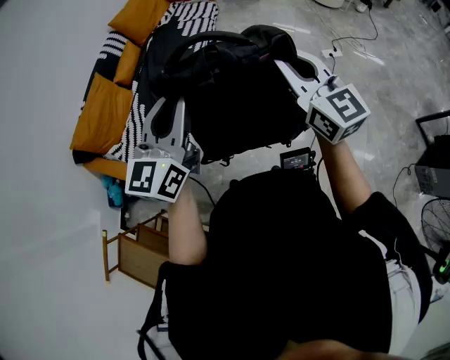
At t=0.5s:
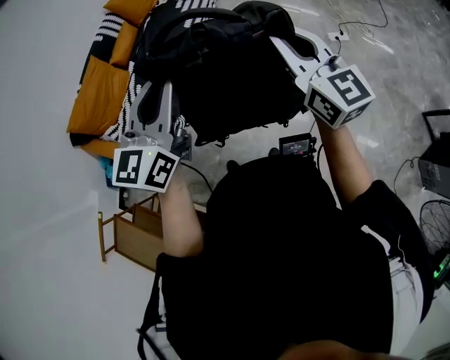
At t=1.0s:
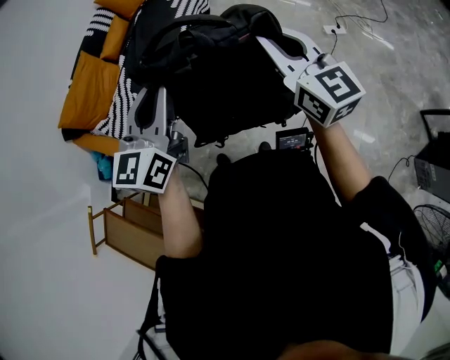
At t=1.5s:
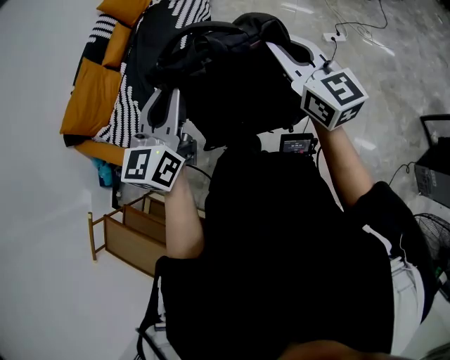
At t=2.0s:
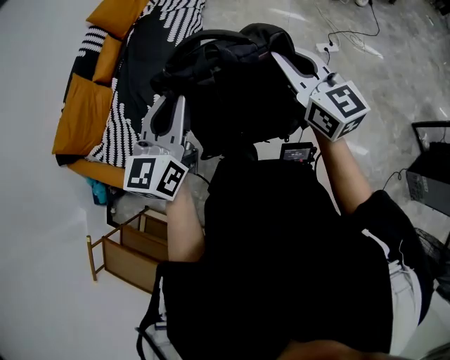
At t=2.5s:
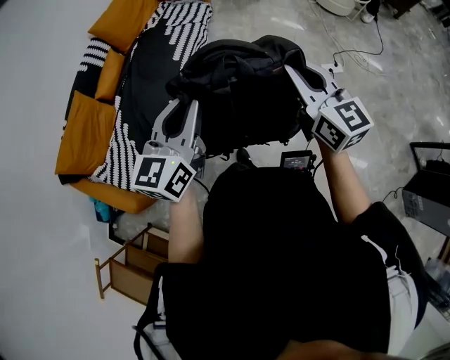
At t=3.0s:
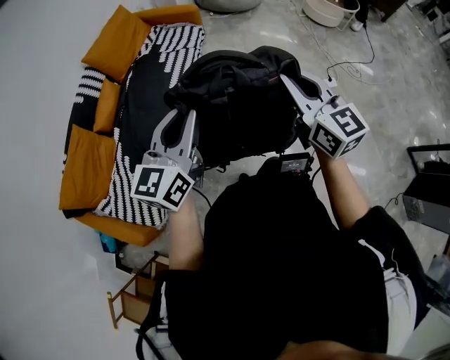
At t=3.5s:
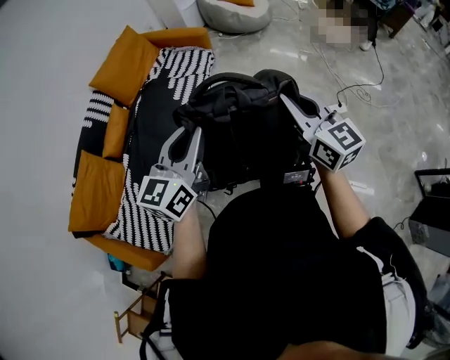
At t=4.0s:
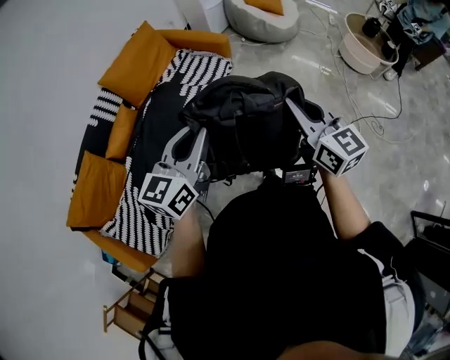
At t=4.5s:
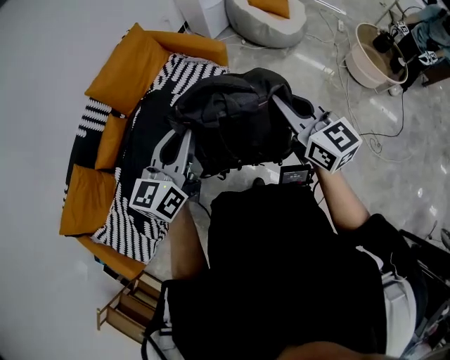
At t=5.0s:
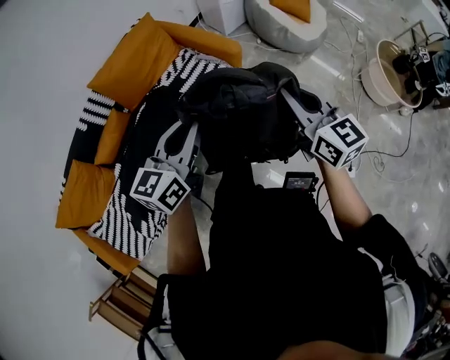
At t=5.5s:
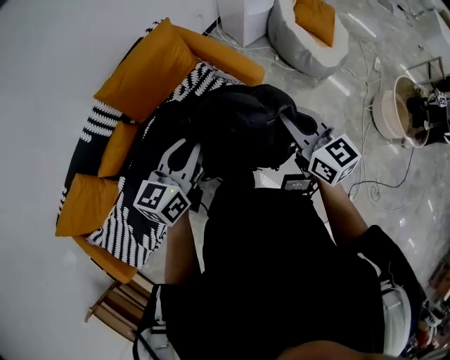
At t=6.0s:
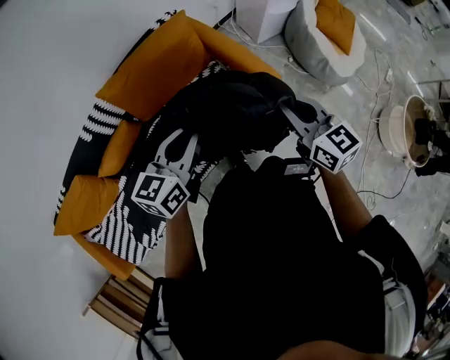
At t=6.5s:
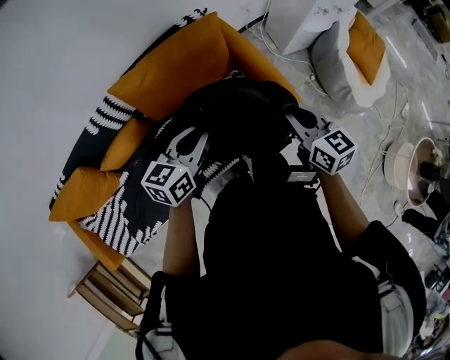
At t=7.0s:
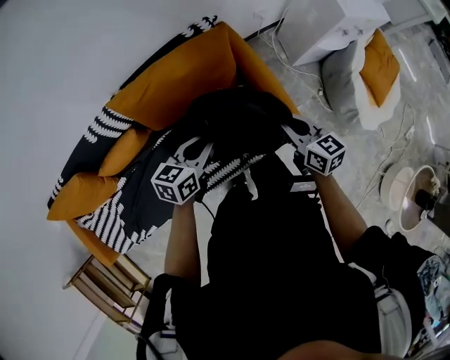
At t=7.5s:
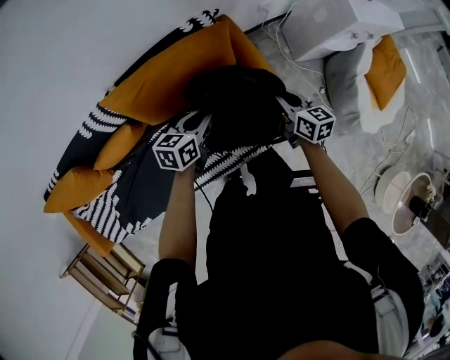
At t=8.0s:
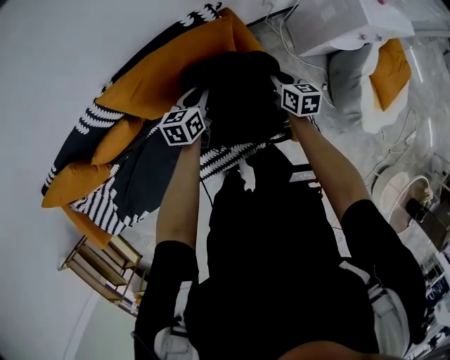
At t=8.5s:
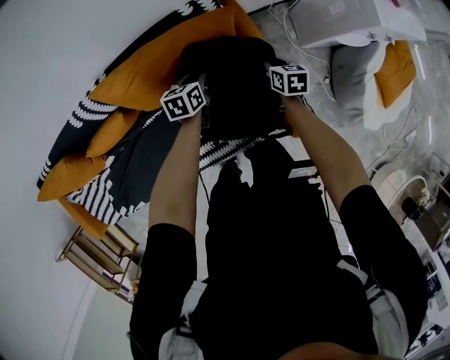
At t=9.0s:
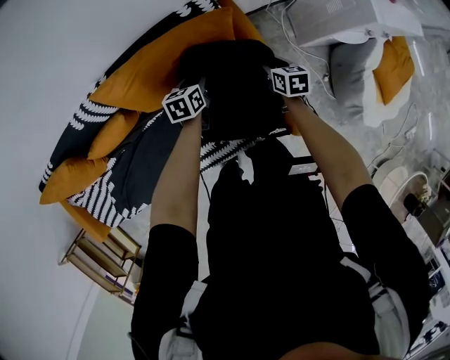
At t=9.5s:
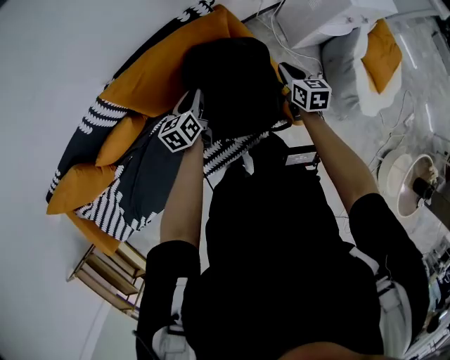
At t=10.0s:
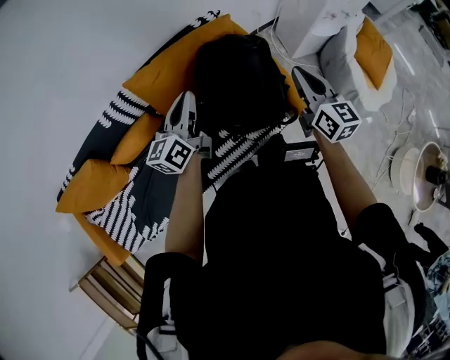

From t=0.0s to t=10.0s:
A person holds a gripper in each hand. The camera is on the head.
From t=0.0s to t=2.0s: The right gripper shifts roughly 15 cm to the right and forward, while the left gripper moves to the right, forward and downward, roughly 15 cm.
From t=2.0s to t=4.0s: The pair of grippers is taken forward, roughly 50 cm.
From t=4.0s to t=6.0s: Both grippers are carried forward, approximately 50 cm. The left gripper turns by approximately 20 degrees, while the right gripper rotates approximately 30 degrees.
From t=6.0s to t=8.0s: The grippers both shift forward and downward by some 40 cm. The left gripper turns by approximately 30 degrees; the right gripper swivels some 30 degrees.
From t=8.0s to t=10.0s: Both grippers move upward and backward, some 30 cm. The left gripper points its fingers about 30 degrees further upward, while the right gripper rotates roughly 30 degrees, and opens, then closes again.

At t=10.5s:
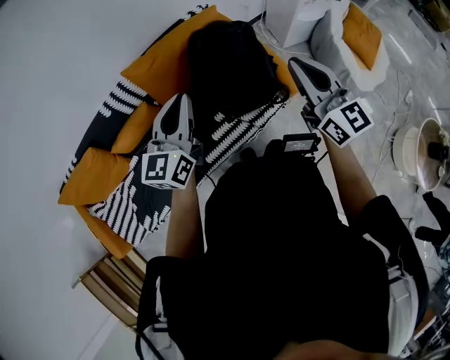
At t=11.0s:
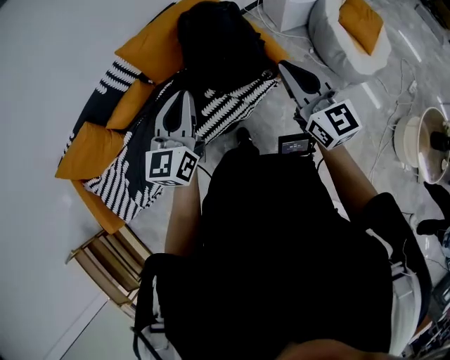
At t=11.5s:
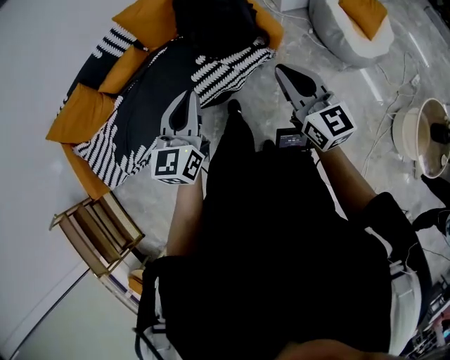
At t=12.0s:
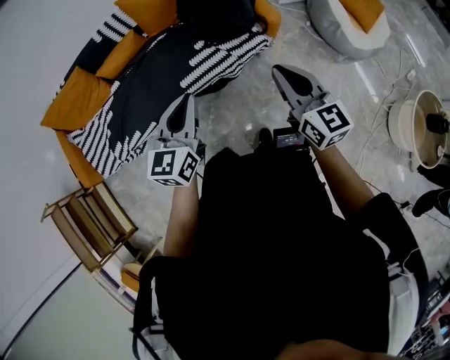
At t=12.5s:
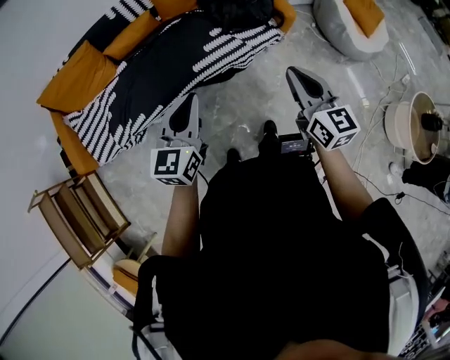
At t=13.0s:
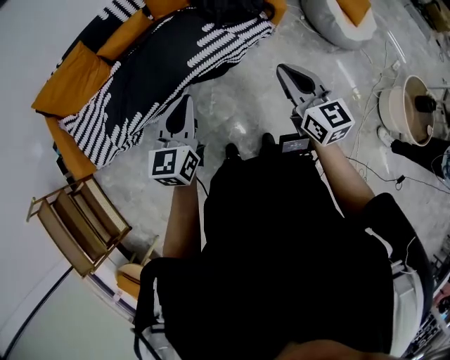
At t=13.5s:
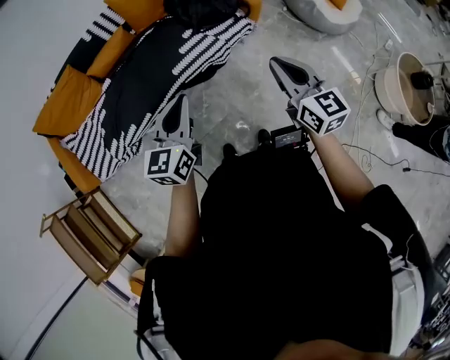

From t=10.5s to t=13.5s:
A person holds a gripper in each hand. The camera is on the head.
From t=10.5s to t=12.0s: The two grippers go about 35 cm backward.
From t=12.0s to t=13.5s: The two grippers go some 15 cm backward and to the left.

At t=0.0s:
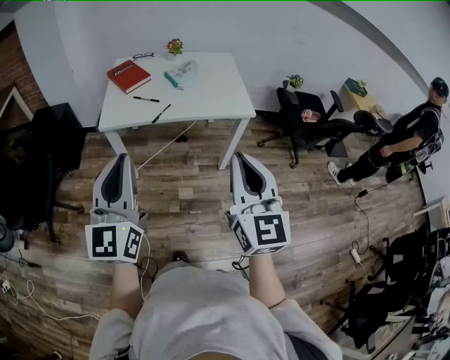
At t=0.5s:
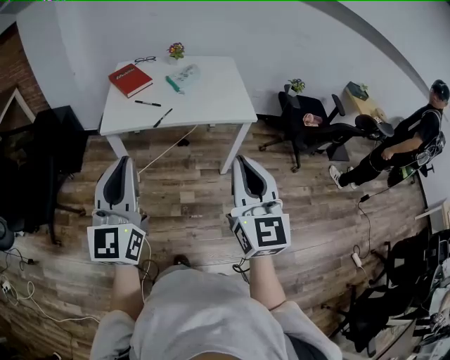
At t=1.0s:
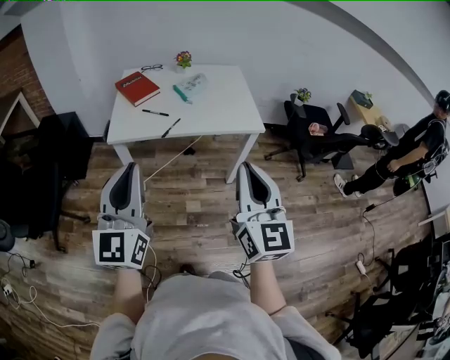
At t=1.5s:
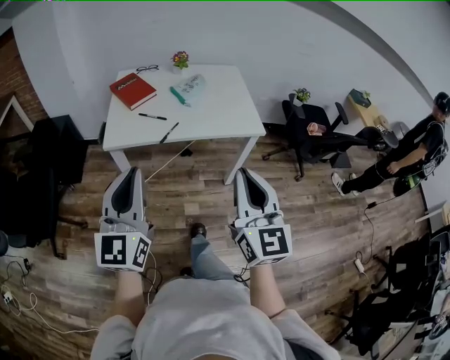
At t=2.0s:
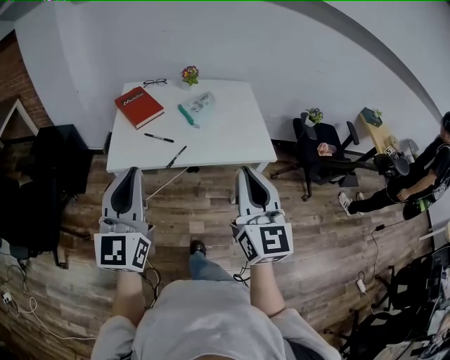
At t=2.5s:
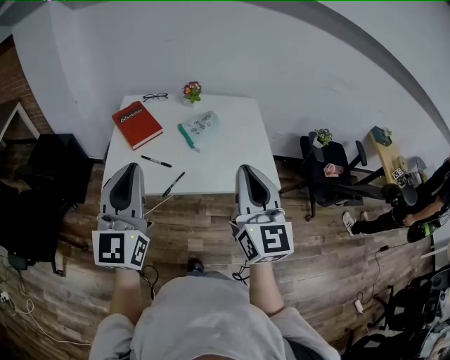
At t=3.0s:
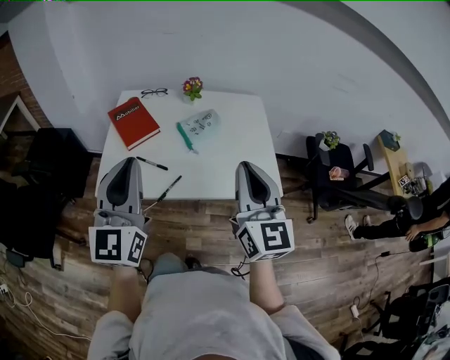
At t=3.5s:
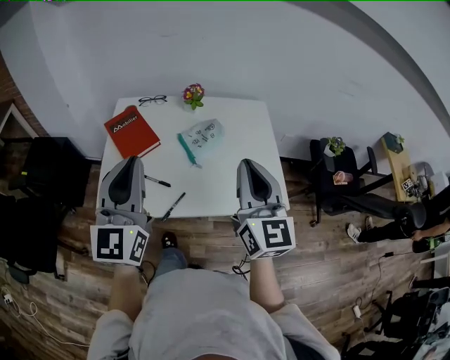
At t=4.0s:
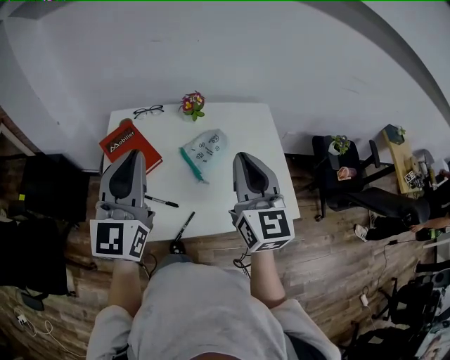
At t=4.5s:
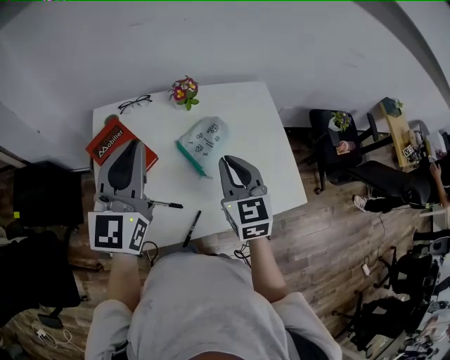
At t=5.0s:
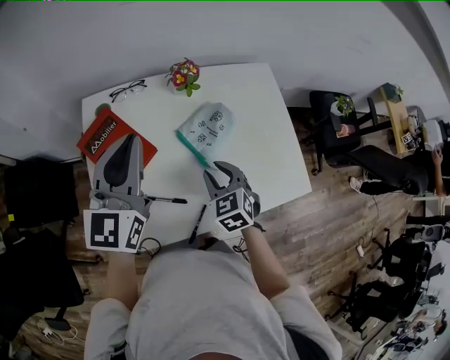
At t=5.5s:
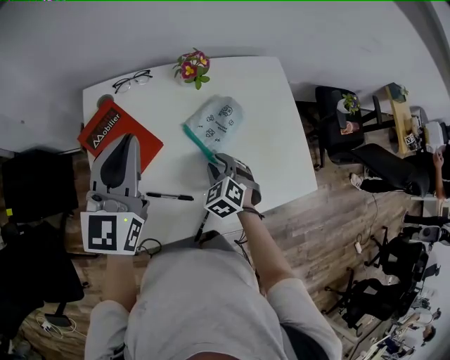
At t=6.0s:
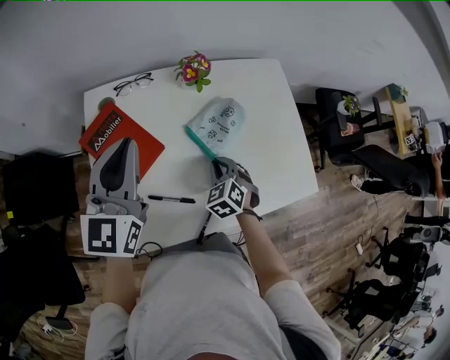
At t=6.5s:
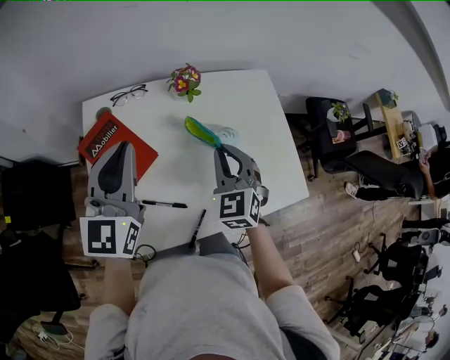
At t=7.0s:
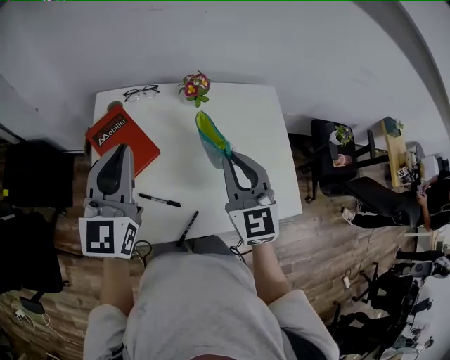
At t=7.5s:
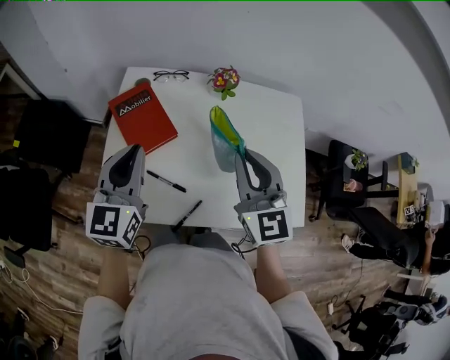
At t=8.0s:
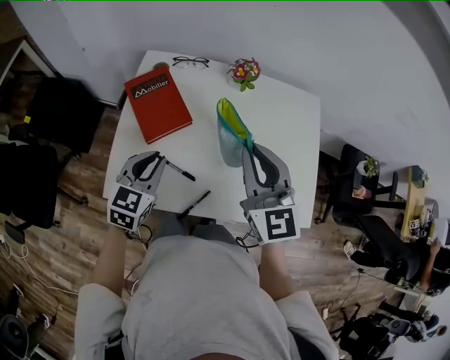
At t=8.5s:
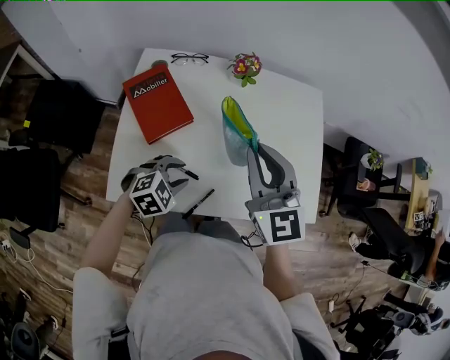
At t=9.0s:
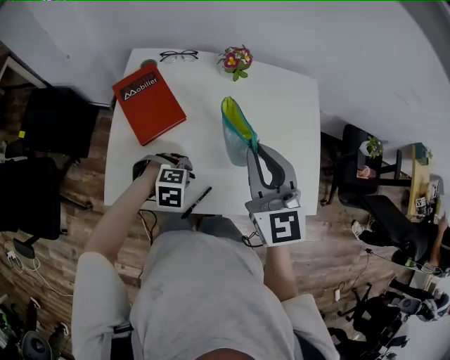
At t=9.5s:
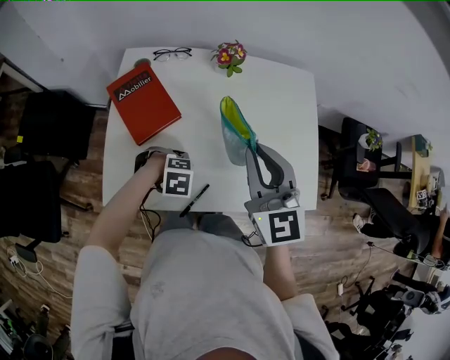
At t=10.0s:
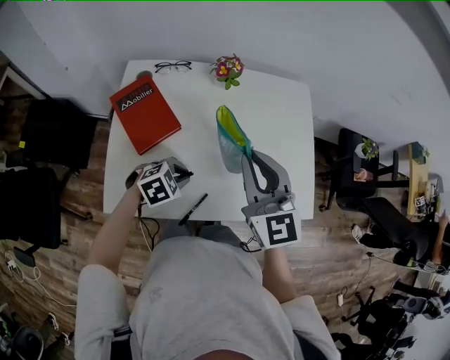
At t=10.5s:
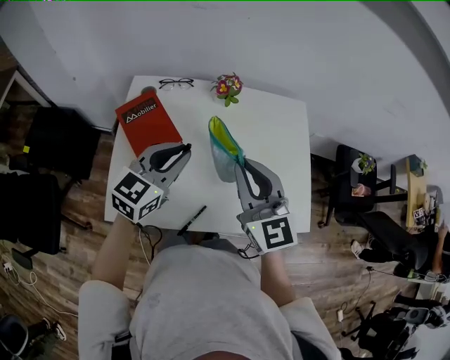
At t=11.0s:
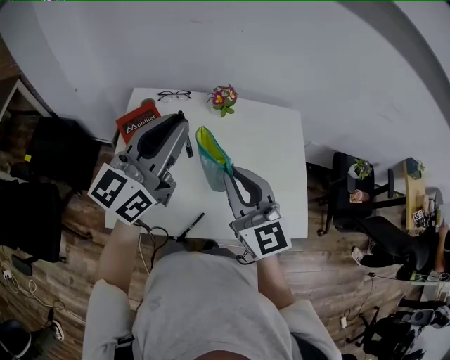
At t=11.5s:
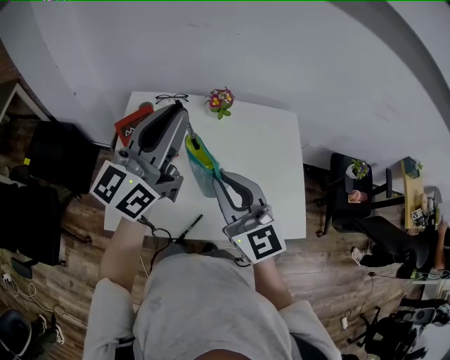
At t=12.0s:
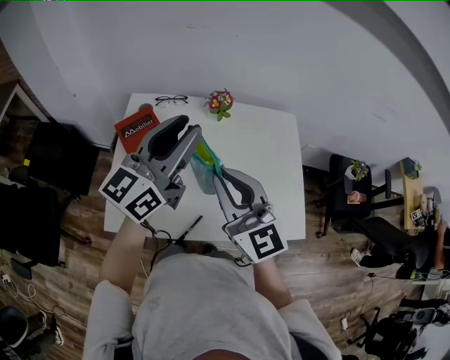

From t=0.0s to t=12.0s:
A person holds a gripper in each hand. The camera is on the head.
From t=0.0s to t=2.0s: Both grippers travel together forward, some 20 cm.
From t=2.0s to t=4.0s: Both grippers travel together forward, roughly 40 cm.
From t=4.0s to t=6.0s: The right gripper travels downward by about 35 cm, and tilts its fingers approximately 50 degrees downward. Meanwhile the left gripper travels forward, downward and to the left by some 20 cm.
From t=6.0s to t=8.0s: The right gripper goes roughly 25 cm upward, and tilts its fingers some 40 degrees upward, while the left gripper goes some 20 cm downward and backward, and swivels some 30 degrees.
From t=8.0s to t=10.0s: The left gripper travels downward by about 10 cm, rotates some 50 degrees, and opens, then closes once more.
From t=10.0s to t=12.0s: The left gripper shifts roughly 35 cm upward, and angles its fingers upward, by some 70 degrees, while the right gripper travels upward by roughly 5 cm.

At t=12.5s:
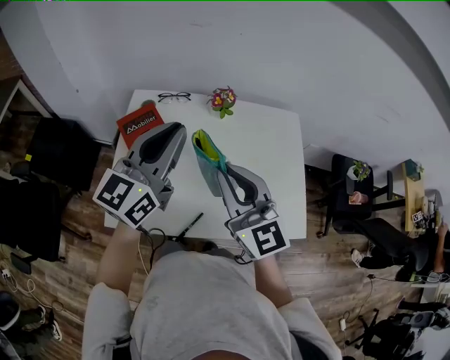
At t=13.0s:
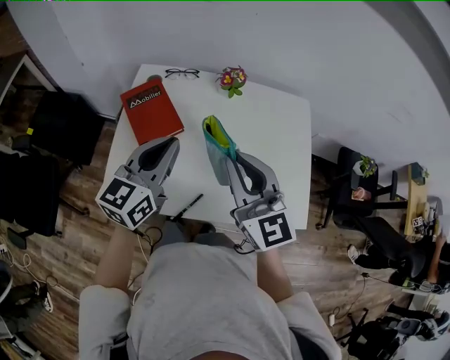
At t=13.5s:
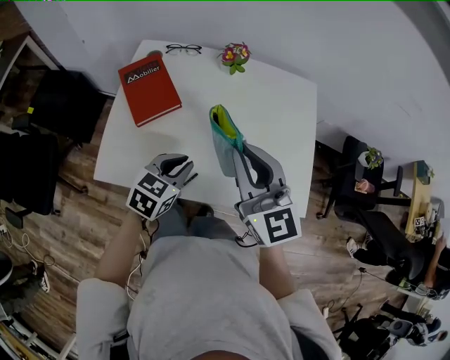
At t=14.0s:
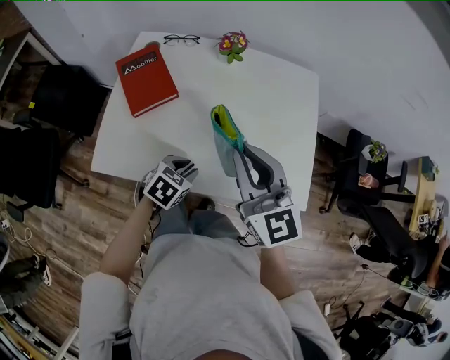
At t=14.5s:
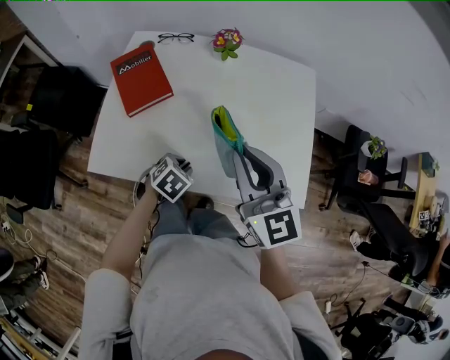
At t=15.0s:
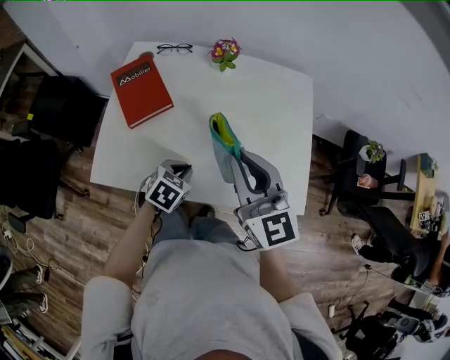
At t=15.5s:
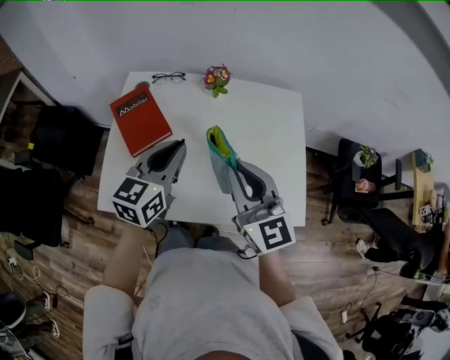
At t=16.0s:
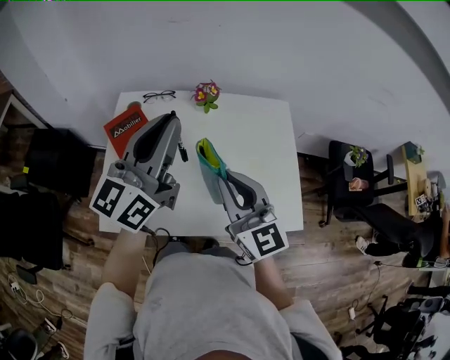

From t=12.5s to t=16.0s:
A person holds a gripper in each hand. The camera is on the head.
From t=12.5s to t=14.5s: The right gripper heads to the right and downward, covering approximately 10 cm; the left gripper is displaced downward by some 40 cm, and tilts its fingers some 70 degrees downward.
From t=14.5s to t=16.0s: The left gripper travels upward by about 40 cm, and tips its fingers upward by about 80 degrees, while the right gripper moves some 5 cm.
